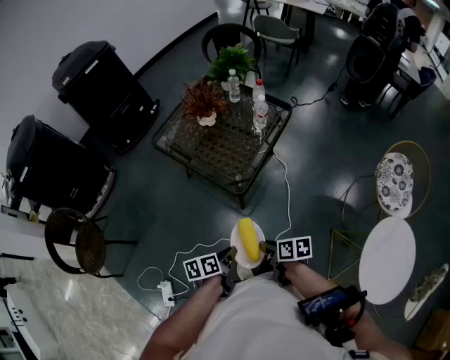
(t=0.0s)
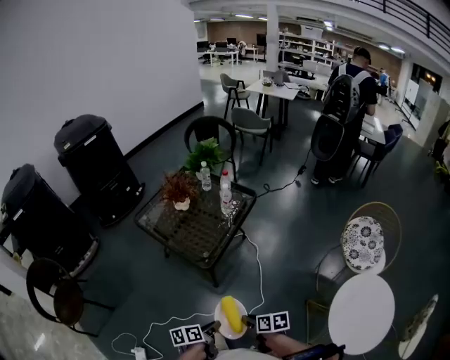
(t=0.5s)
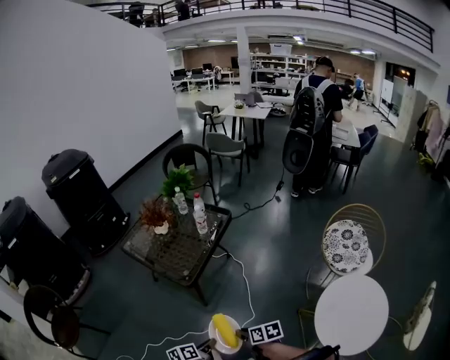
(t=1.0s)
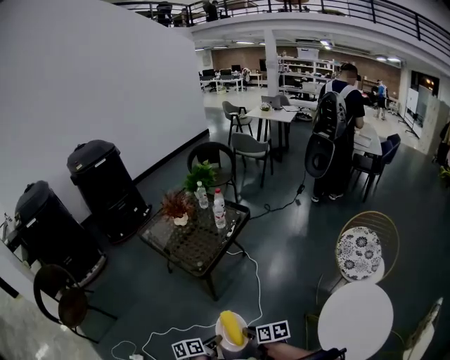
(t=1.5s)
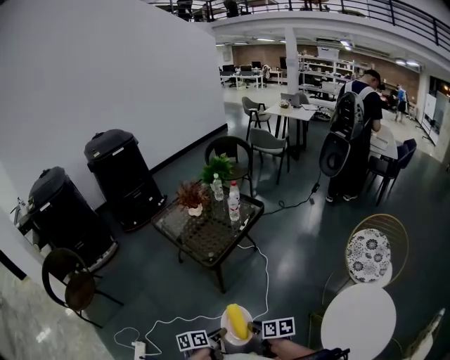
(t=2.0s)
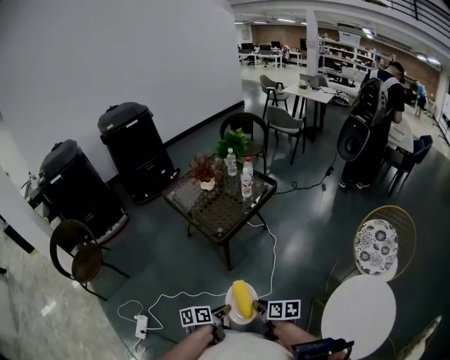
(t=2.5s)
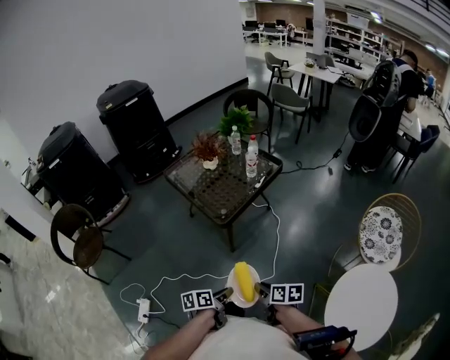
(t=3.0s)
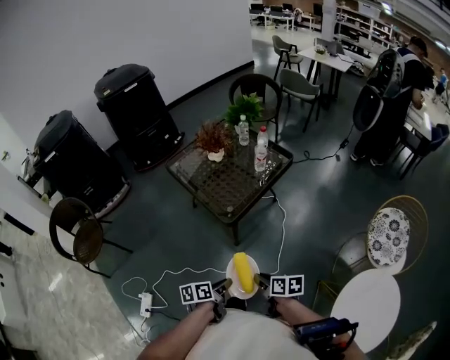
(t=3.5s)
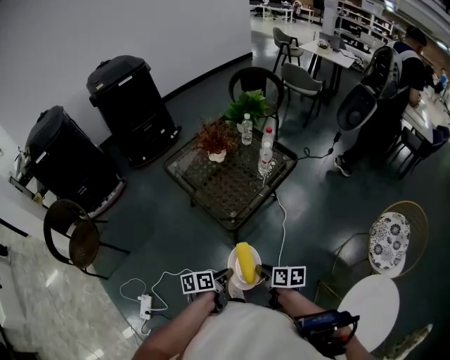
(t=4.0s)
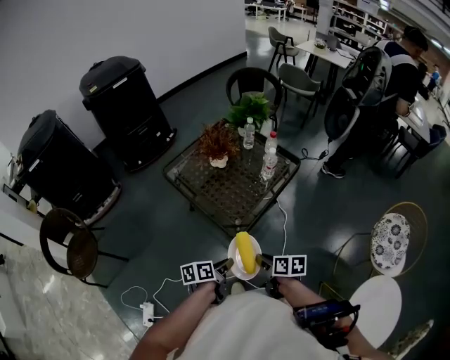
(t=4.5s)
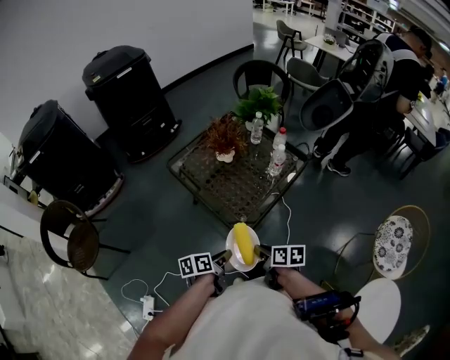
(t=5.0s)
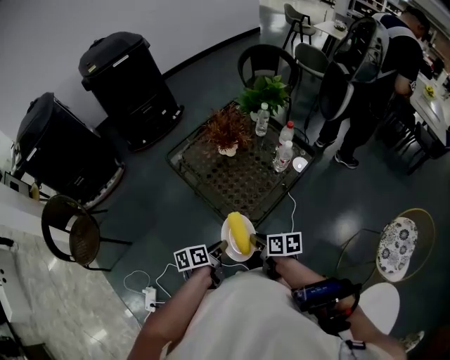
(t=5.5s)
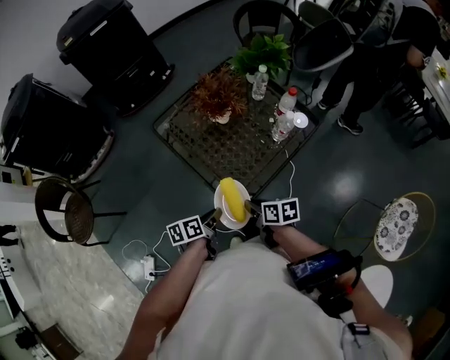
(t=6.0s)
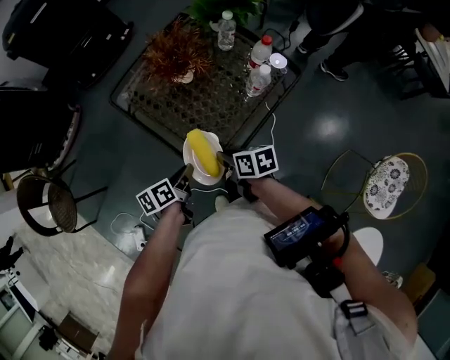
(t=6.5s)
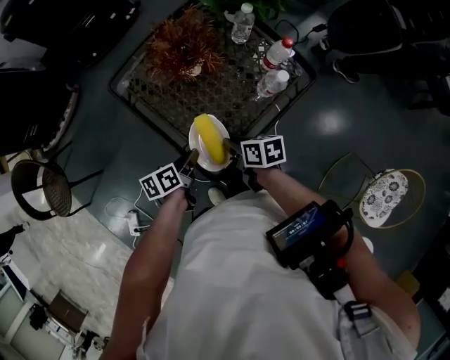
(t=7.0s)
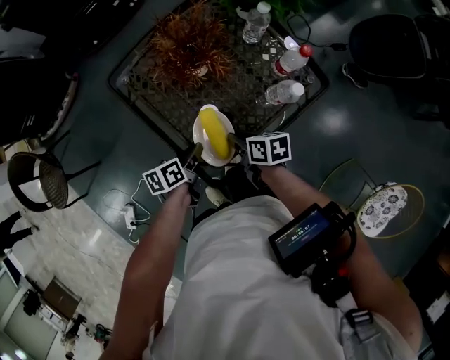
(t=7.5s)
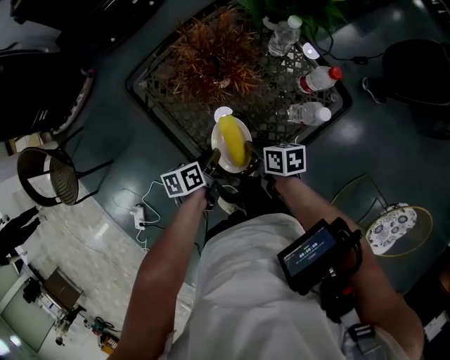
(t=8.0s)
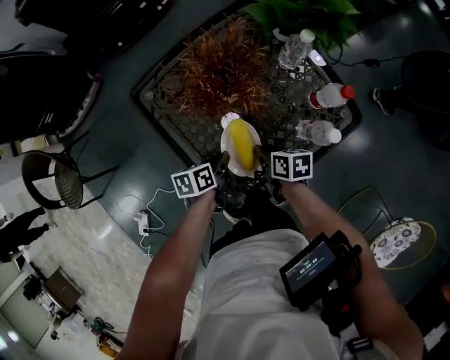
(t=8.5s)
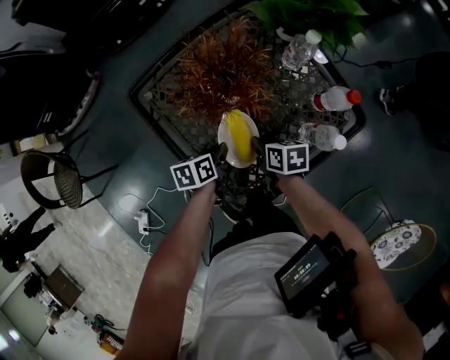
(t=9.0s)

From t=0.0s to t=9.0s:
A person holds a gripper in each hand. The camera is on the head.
From t=0.0s to t=2.0s: Both grippers move backward and to the right, about 25 cm.
From t=2.0s to t=4.5s: Both grippers travel together forward, approximately 30 cm.
From t=4.5s to t=7.0s: The grippers both shift forward by approximately 30 cm.
From t=7.0s to t=9.0s: The grippers both shift forward and downward by approximately 15 cm.

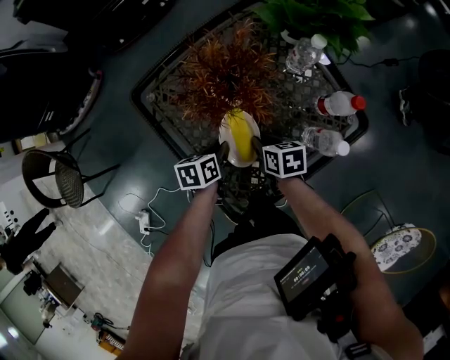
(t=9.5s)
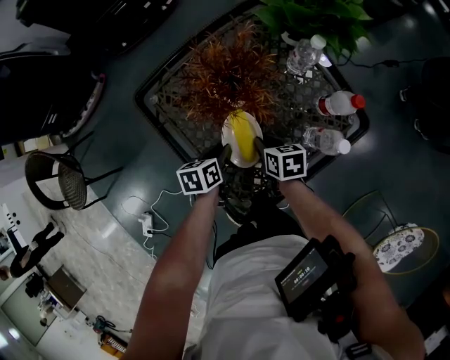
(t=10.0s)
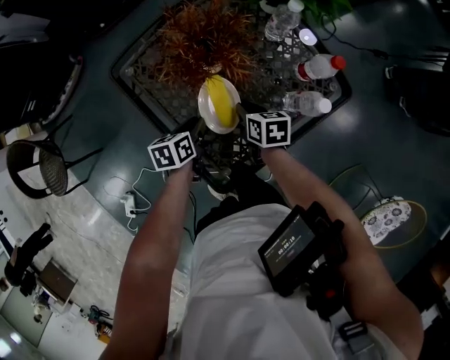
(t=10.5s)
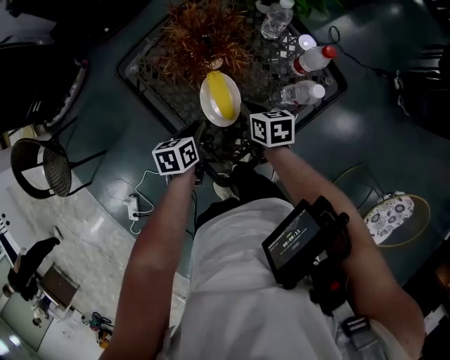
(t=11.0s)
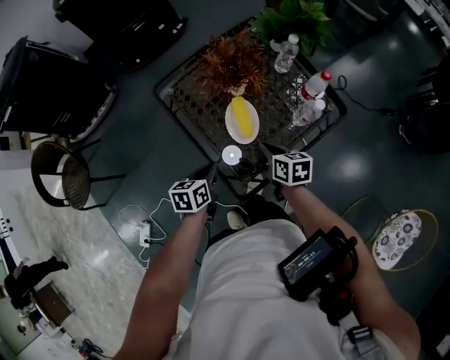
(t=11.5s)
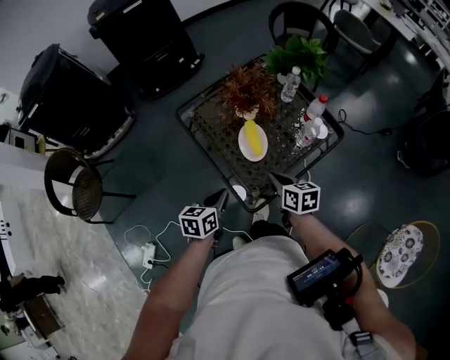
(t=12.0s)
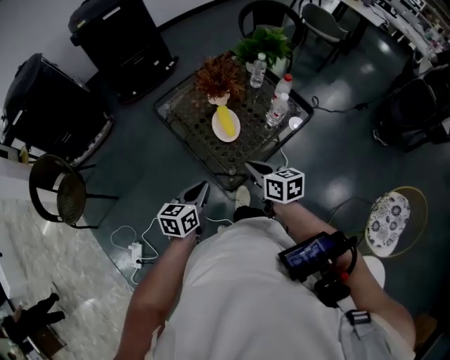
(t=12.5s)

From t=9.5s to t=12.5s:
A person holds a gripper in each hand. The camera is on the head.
From t=9.5s to t=11.0s: The right gripper changes place by some 5 cm. Meanwhile the left gripper shifts roughly 5 cm backward.
From t=11.0s to t=12.5s: Both grippers travel together backward and upward, about 30 cm. The left gripper swivels approximately 30 degrees.

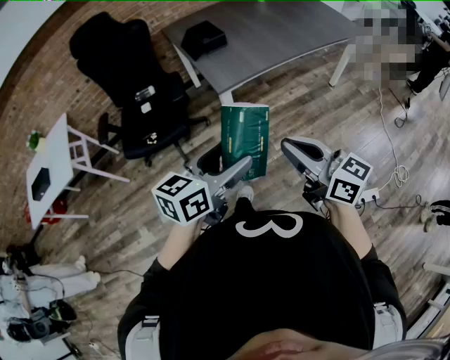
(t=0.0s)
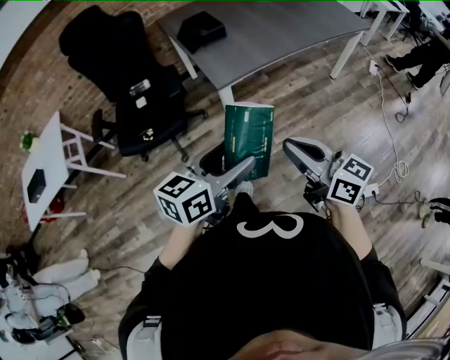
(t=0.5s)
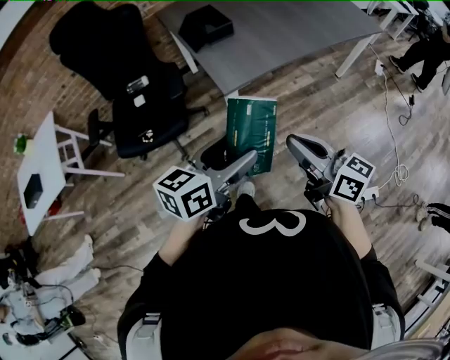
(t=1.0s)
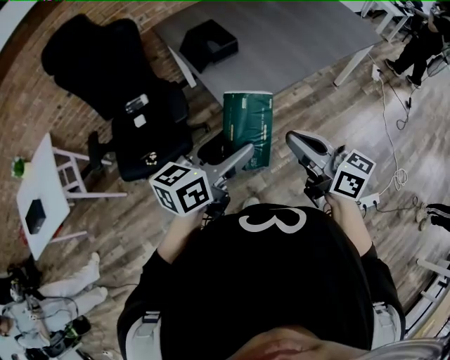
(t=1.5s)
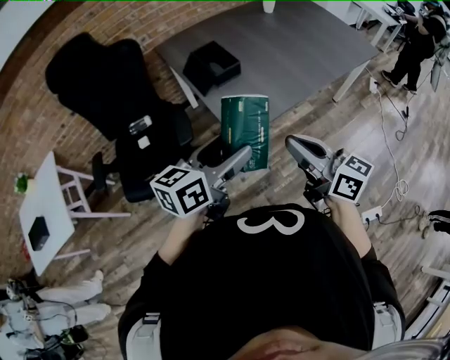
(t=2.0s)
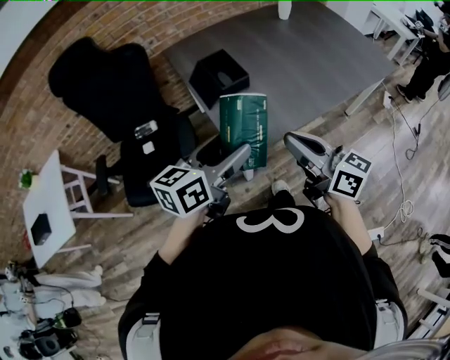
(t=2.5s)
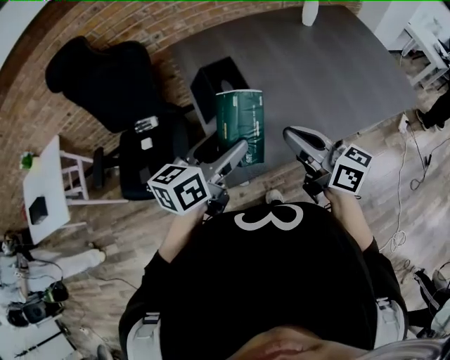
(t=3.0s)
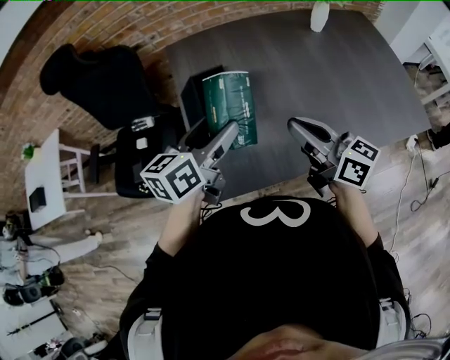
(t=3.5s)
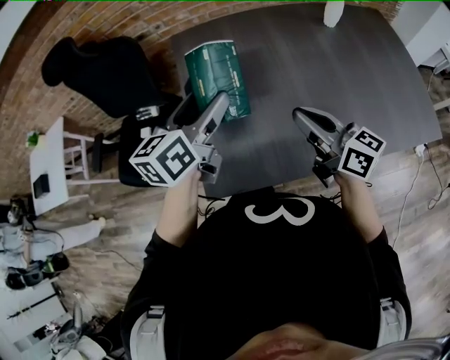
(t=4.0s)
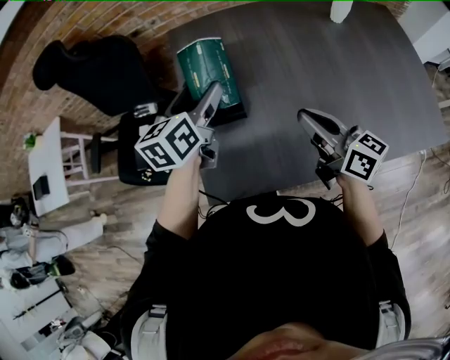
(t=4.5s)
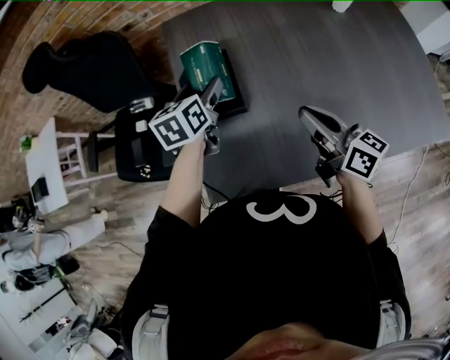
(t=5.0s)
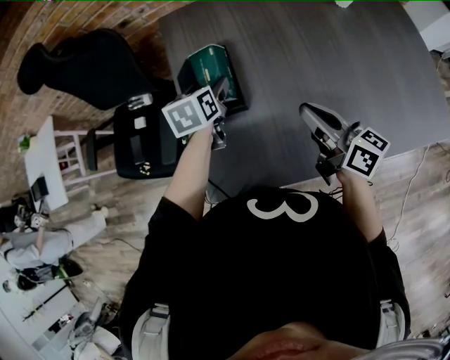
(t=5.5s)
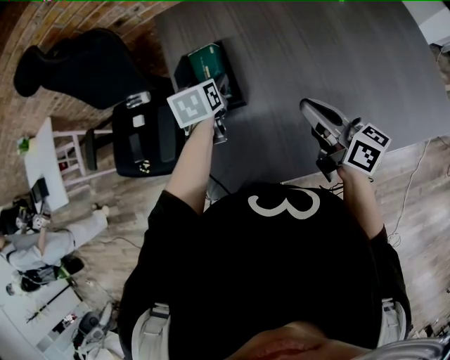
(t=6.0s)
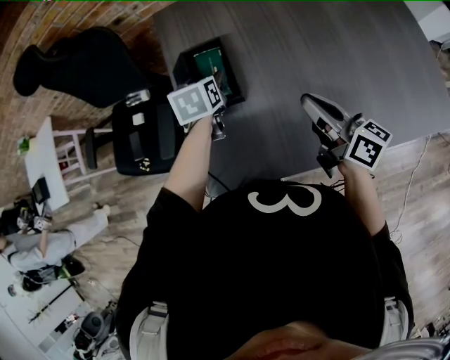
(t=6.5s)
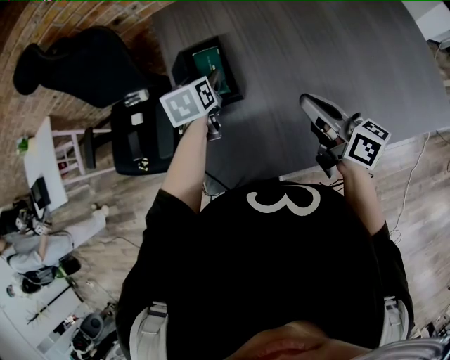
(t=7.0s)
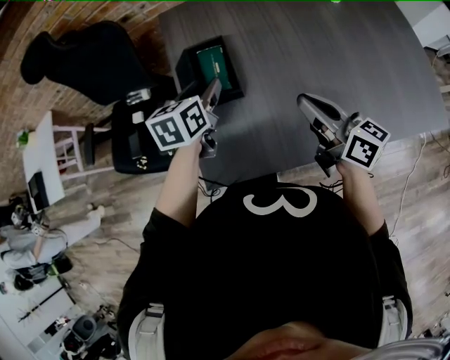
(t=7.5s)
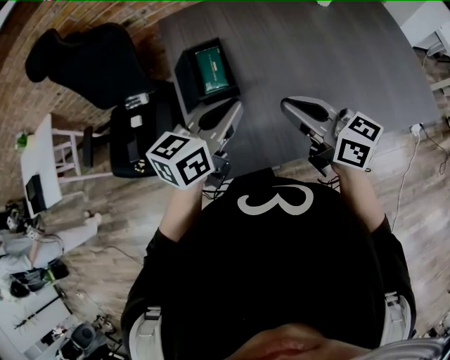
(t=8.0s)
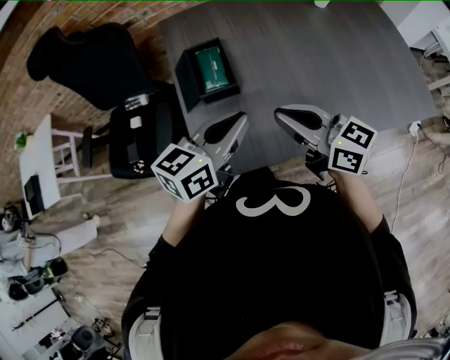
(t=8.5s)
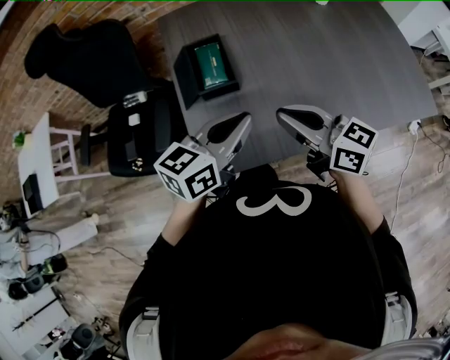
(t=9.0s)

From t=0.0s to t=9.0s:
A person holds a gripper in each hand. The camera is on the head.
From t=0.0s to t=2.0s: The grippers both shift forward by about 25 cm.
From t=2.0s to t=4.5s: The right gripper changes place by roughly 40 cm, and swivels roughly 20 degrees; the left gripper moves approximately 40 cm, and changes its angle by approximately 50 degrees.
From t=4.5s to t=7.0s: The left gripper heads downward and forward, covering about 15 cm, and rotates about 30 degrees.
From t=7.0s to t=9.0s: The right gripper is displaced backward and to the left by about 10 cm, and turns by approximately 20 degrees. Meanwhile the left gripper heads backward and upward, covering approximately 25 cm, angles its fingers upward, by approximately 30 degrees, and closes.

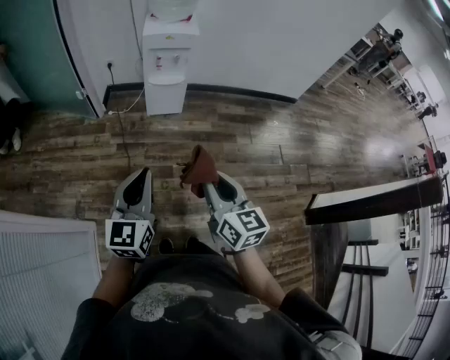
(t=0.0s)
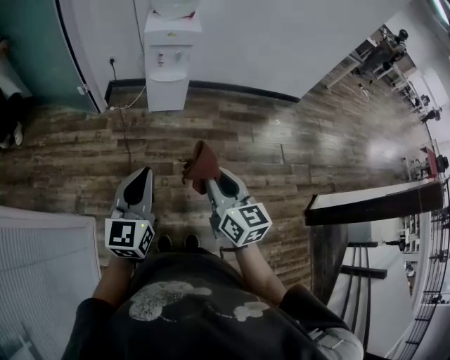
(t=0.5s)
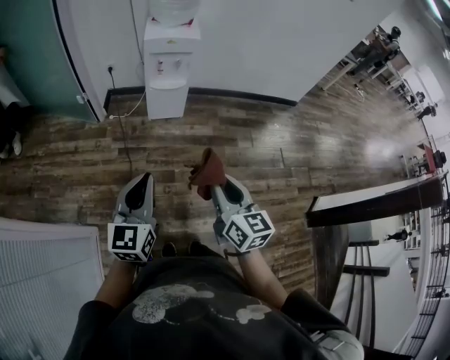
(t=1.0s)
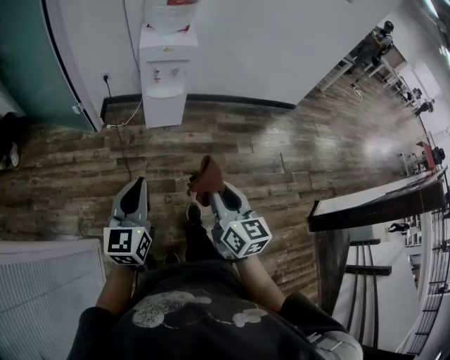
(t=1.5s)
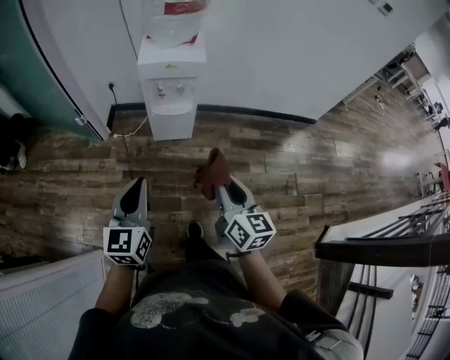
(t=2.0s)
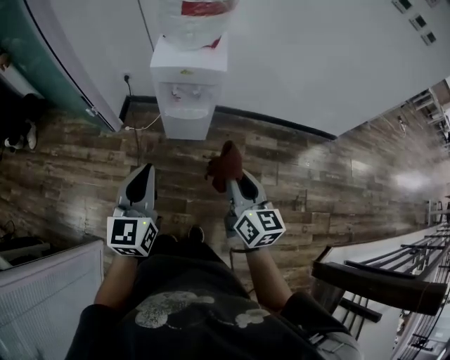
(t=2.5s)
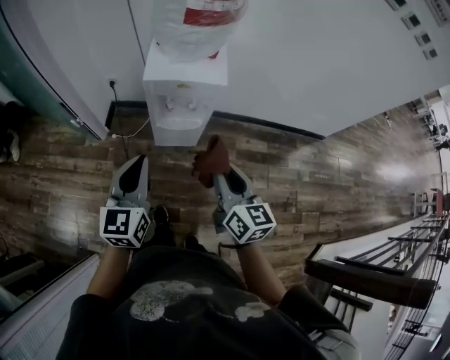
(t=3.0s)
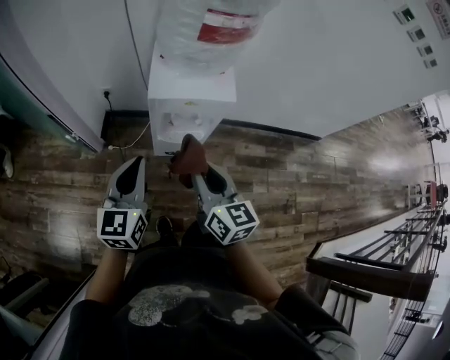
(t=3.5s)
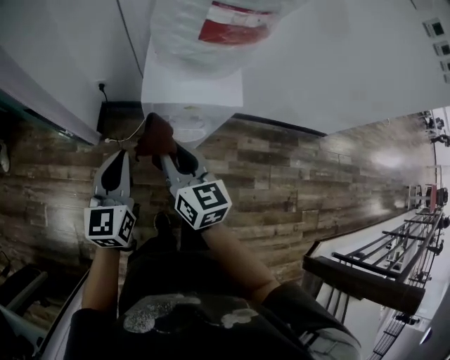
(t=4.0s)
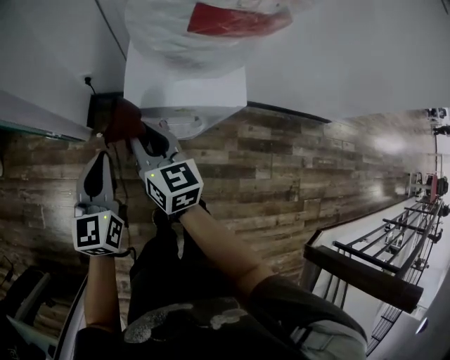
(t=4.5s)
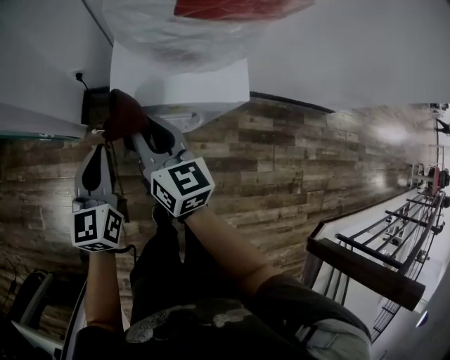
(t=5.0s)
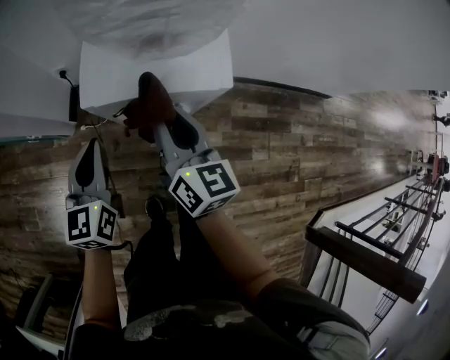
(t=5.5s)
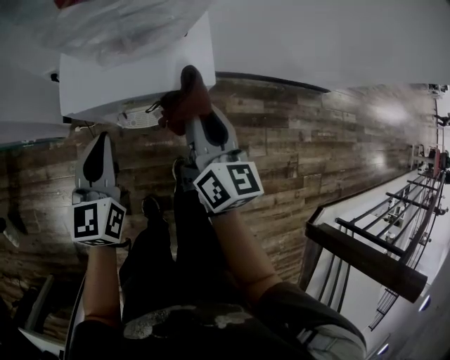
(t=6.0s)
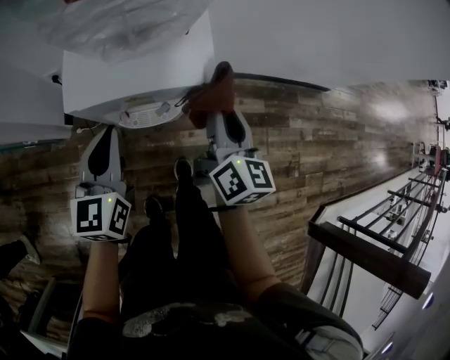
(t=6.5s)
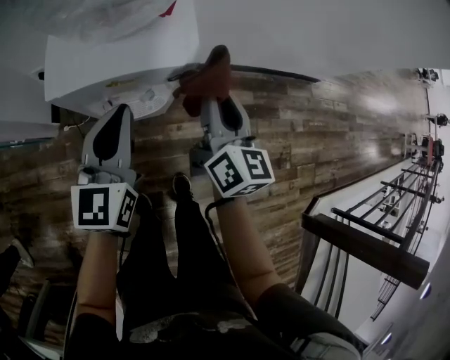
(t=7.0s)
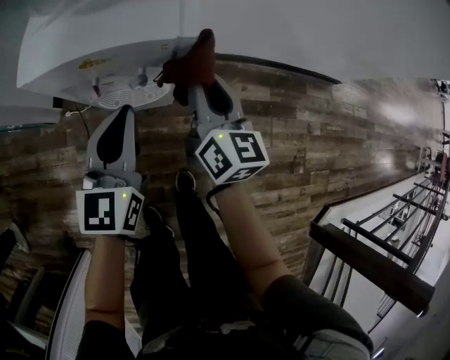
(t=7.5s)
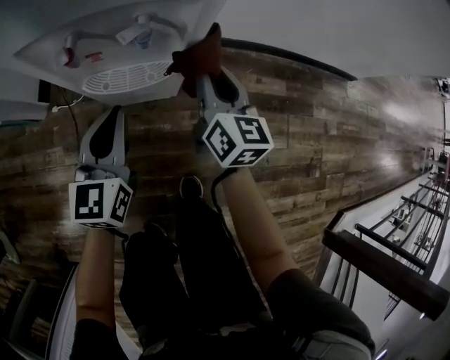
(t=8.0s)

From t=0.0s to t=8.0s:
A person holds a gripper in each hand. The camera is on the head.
From t=0.0s to t=2.0s: Both grippers move forward, some 25 cm.
From t=2.0s to t=4.0s: The left gripper travels forward by roughly 35 cm; the right gripper moves forward and to the left, some 40 cm.
From t=4.0s to t=6.0s: The left gripper shifts roughly 15 cm to the right, downward and forward. Meanwhile the right gripper goes approximately 20 cm to the right and forward, and changes its angle by about 20 degrees.
From t=6.0s to t=8.0s: Both grippers move downward, about 25 cm.
